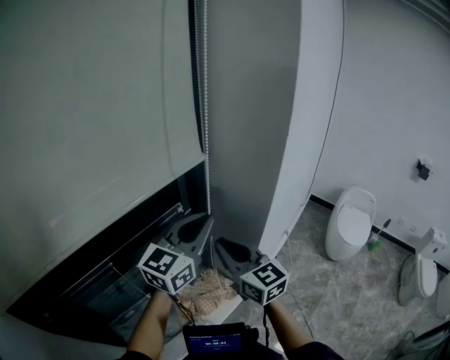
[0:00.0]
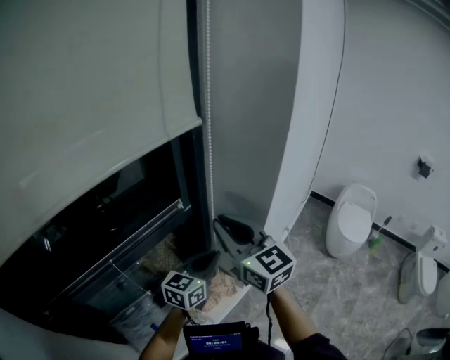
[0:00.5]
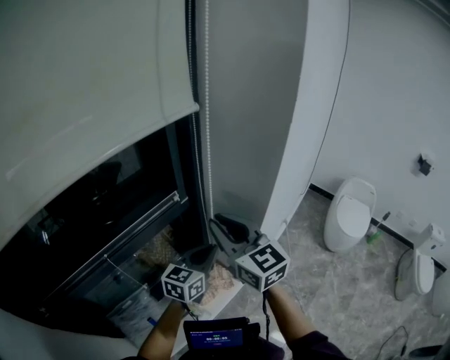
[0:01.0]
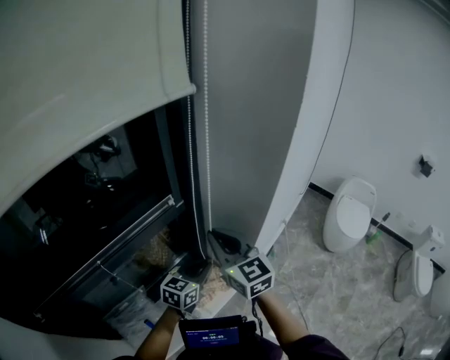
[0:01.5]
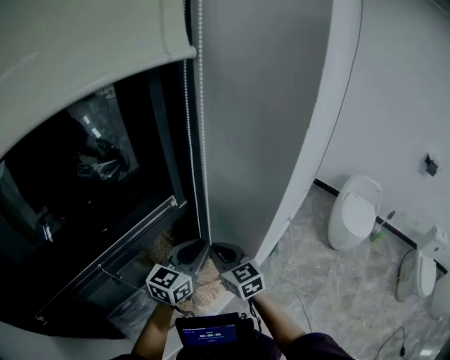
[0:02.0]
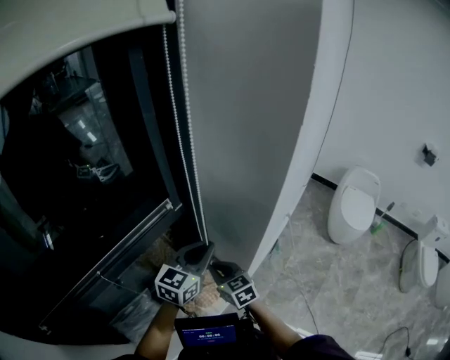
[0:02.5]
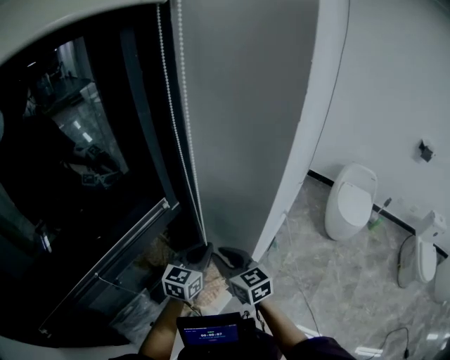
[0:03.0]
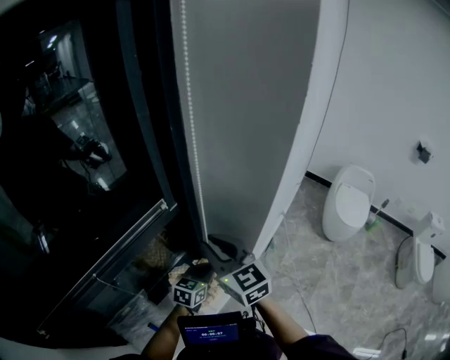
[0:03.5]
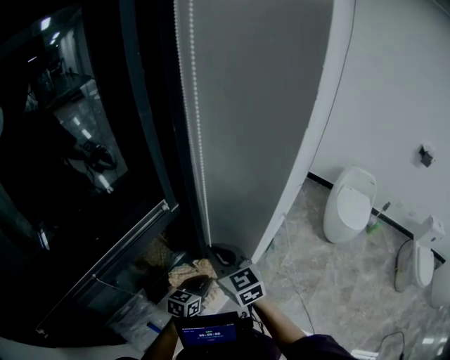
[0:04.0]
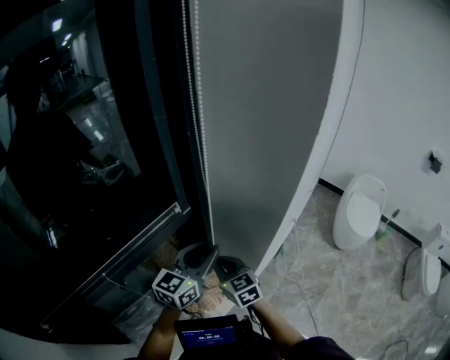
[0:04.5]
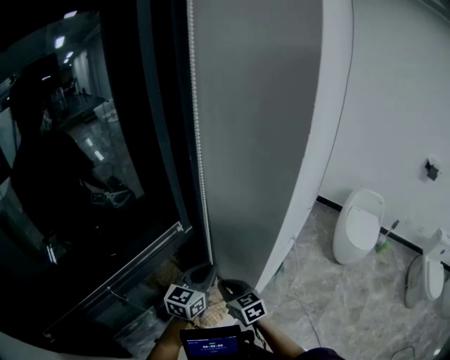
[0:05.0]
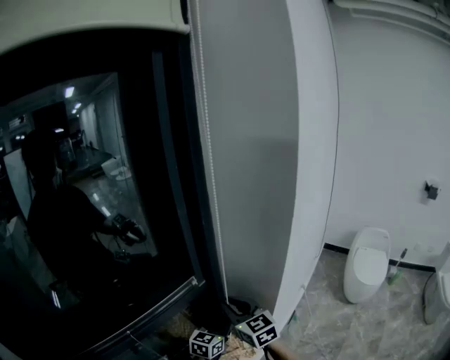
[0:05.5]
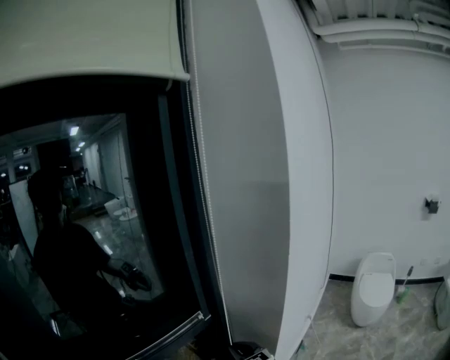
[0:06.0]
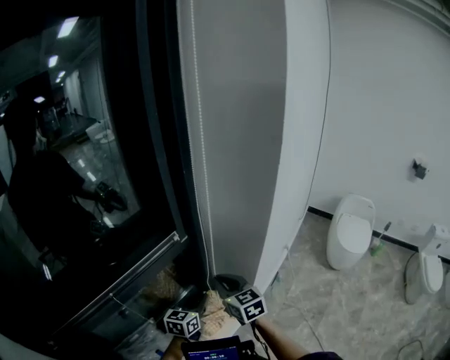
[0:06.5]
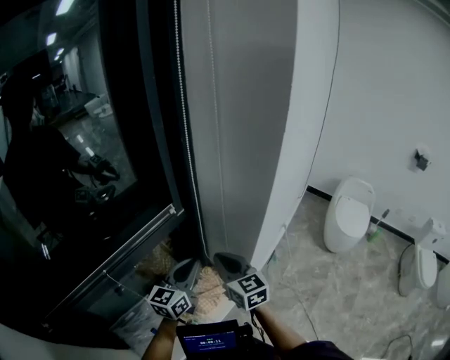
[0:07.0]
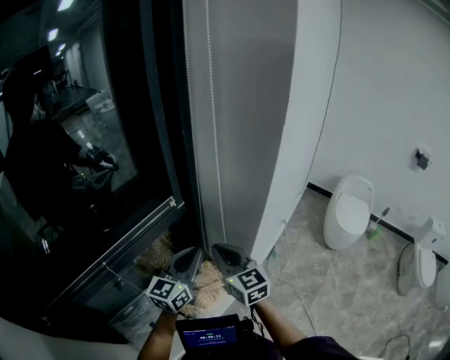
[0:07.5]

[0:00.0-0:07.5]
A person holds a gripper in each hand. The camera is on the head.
0:00.0 to 0:02.0: The left gripper goes some 20 cm downward; the right gripper moves downward and forward, some 15 cm.
0:02.0 to 0:04.0: The right gripper swings up and down, about 20 cm each way, with 2 reversals. Meanwhile the left gripper heads downward, covering approximately 20 cm, and rotates some 20 degrees.
0:04.0 to 0:05.5: The right gripper reaches approximately 10 cm downward, then returns, and opens, while the left gripper travels upward and forward by some 15 cm.
0:05.5 to 0:07.5: The right gripper moves backward, about 5 cm, travels downward and back again, roughly 10 cm each way, and closes, while the left gripper travels upward and backward by some 10 cm.

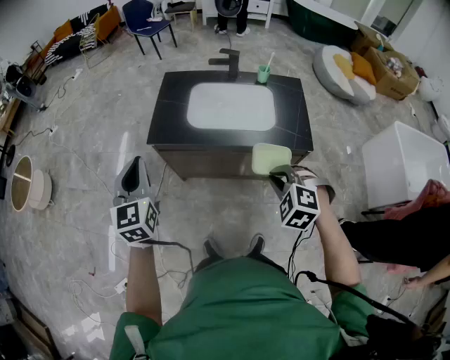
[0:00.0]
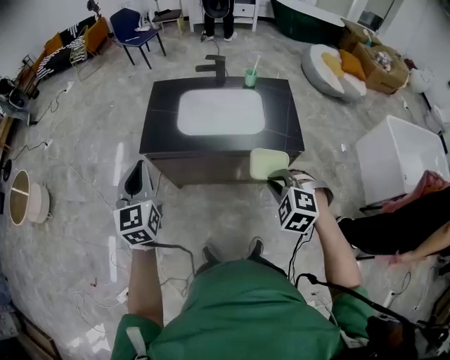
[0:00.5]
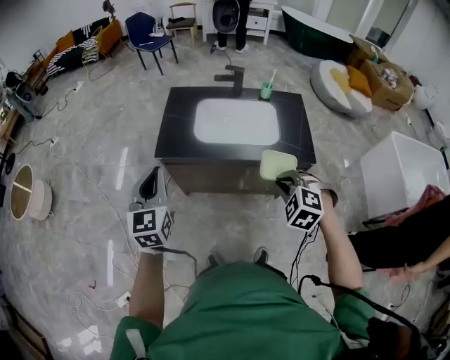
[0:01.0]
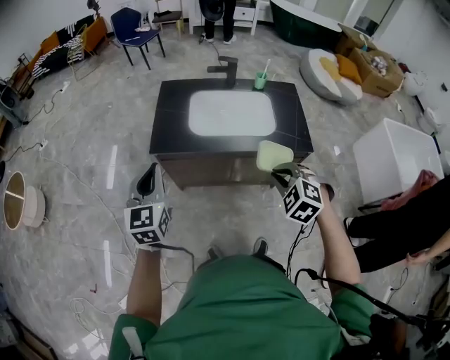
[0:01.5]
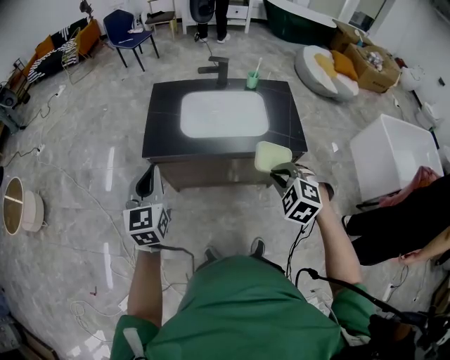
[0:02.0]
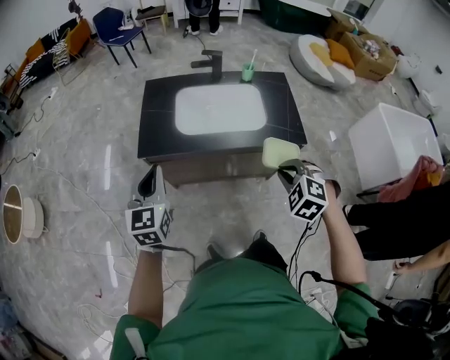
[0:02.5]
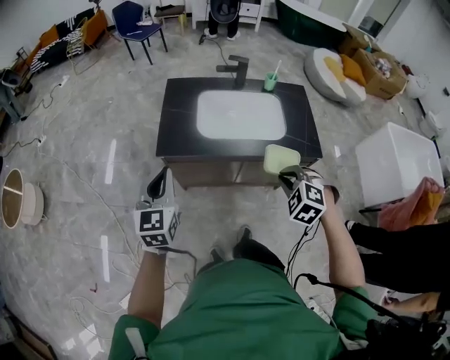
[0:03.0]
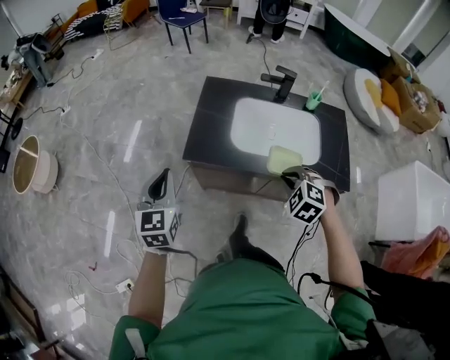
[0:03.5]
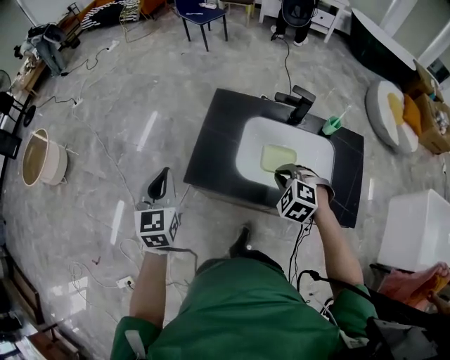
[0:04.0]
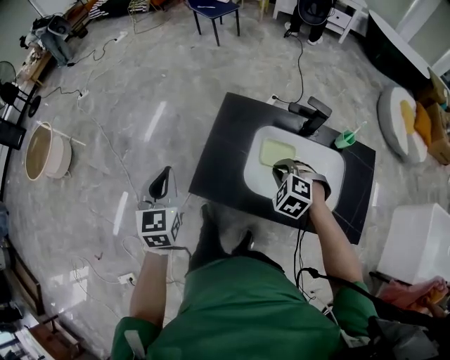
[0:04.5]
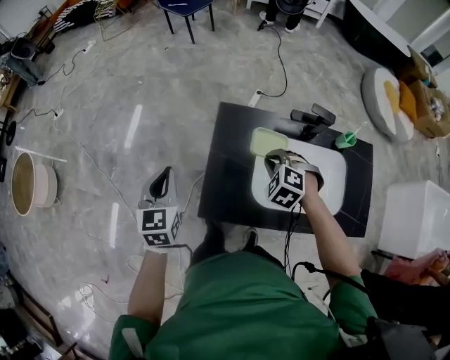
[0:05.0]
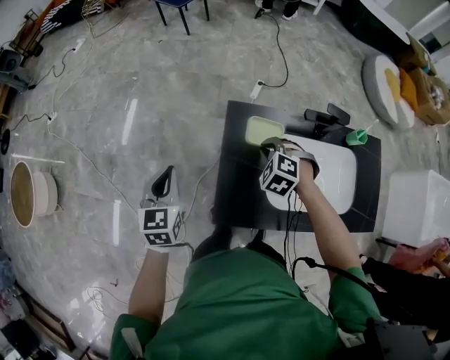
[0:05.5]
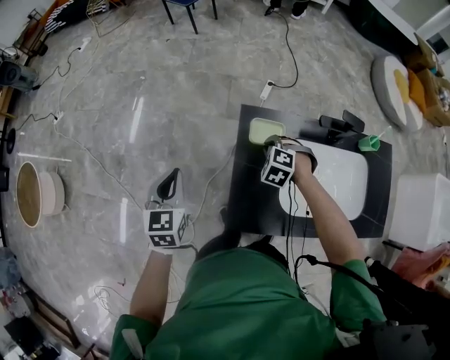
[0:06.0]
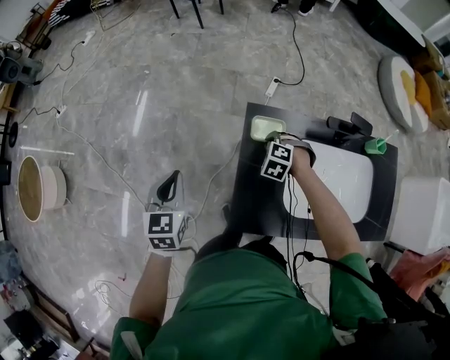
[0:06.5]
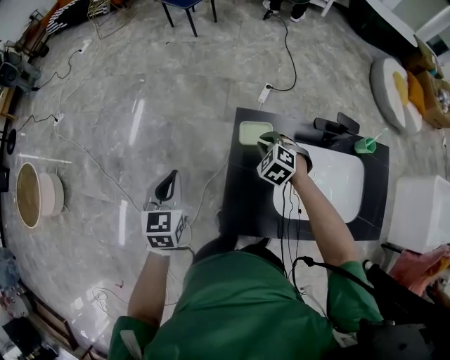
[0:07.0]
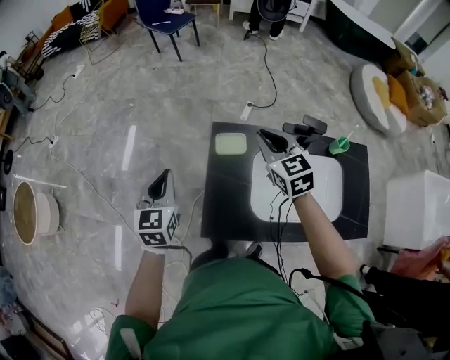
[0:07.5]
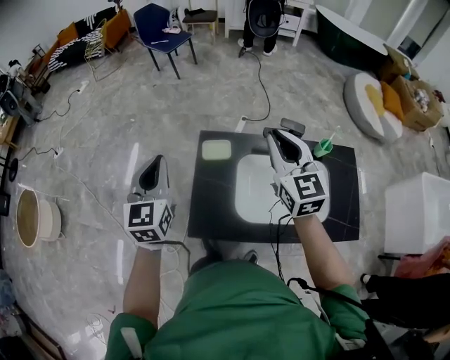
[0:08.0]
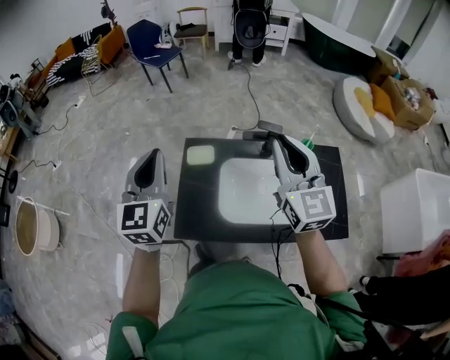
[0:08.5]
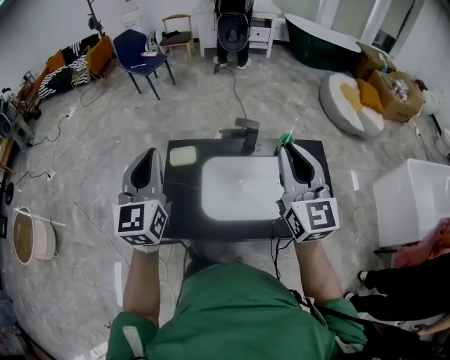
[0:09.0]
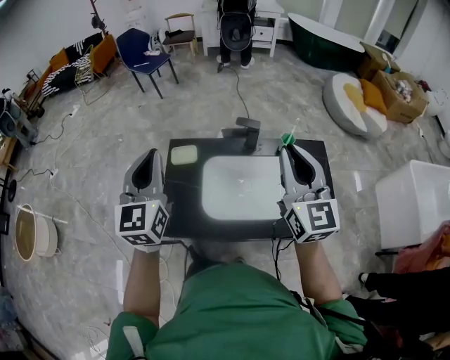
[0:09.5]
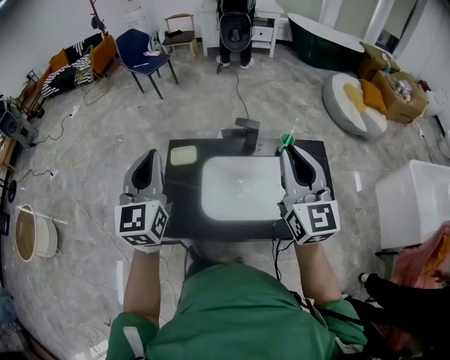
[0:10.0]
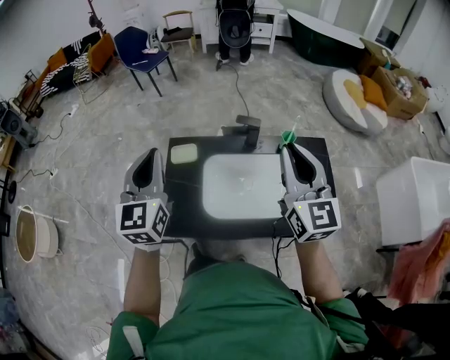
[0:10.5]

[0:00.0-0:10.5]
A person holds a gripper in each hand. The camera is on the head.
0:00.0 to 0:02.0: The grippers stay close to where they were, moving slightly.
0:02.0 to 0:04.0: The left gripper heads forward and to the left, covering some 25 cm; the right gripper travels forward by about 35 cm.
0:04.0 to 0:06.5: The left gripper is displaced forward and to the left by approximately 35 cm, while the right gripper heads forward, downward and to the left, covering some 40 cm.
0:06.5 to 0:08.5: The left gripper moves upward and to the right, about 35 cm, and tilts its fingers approximately 30 degrees upward. Meanwhile the right gripper is displaced upward, to the right and backward by some 60 cm, and points its fingers roughly 70 degrees further upward.
0:08.5 to 0:10.5: The right gripper heads to the right and backward, covering some 10 cm, while the left gripper moves to the right, about 10 cm.

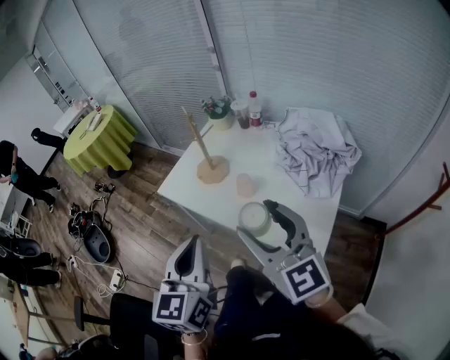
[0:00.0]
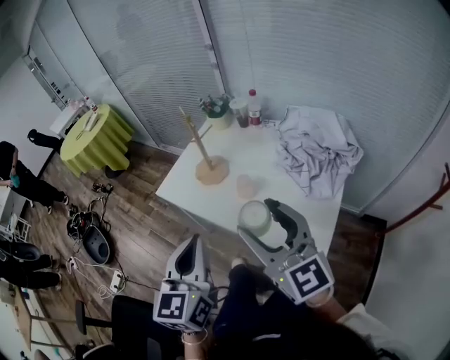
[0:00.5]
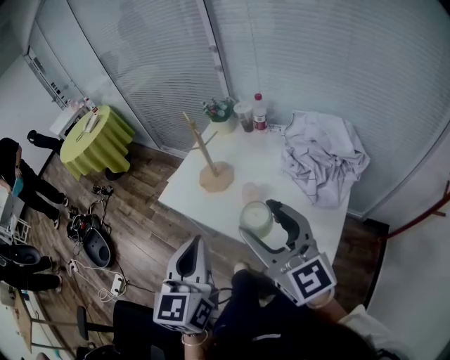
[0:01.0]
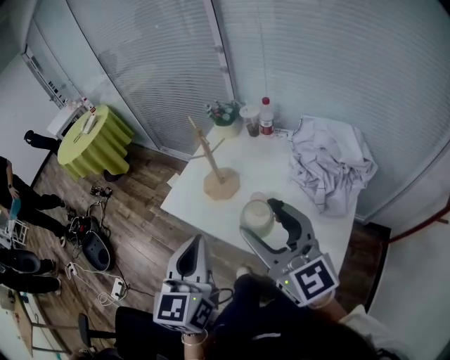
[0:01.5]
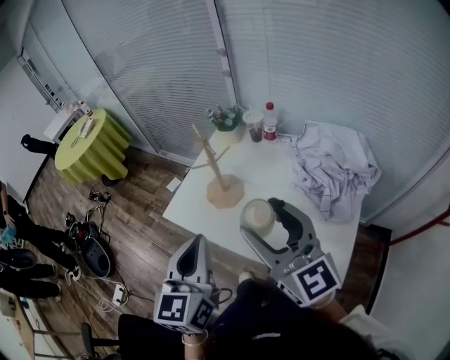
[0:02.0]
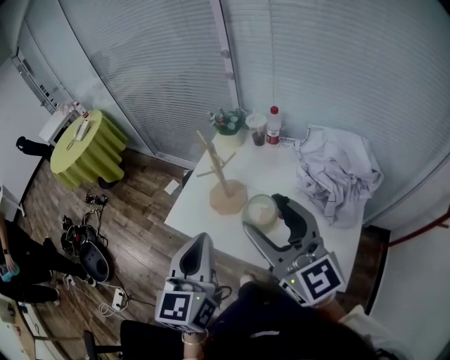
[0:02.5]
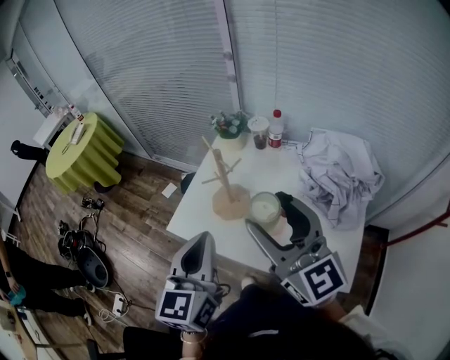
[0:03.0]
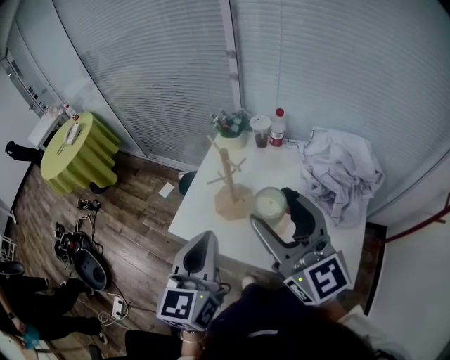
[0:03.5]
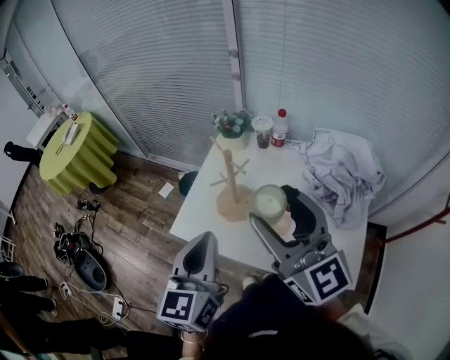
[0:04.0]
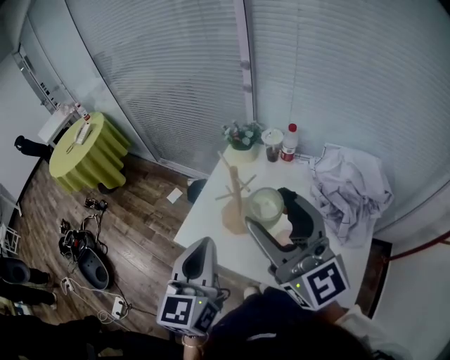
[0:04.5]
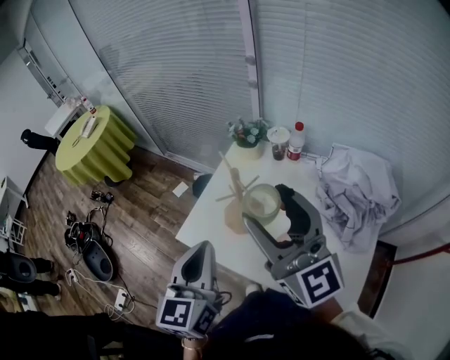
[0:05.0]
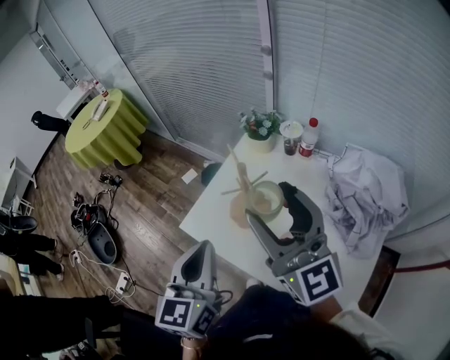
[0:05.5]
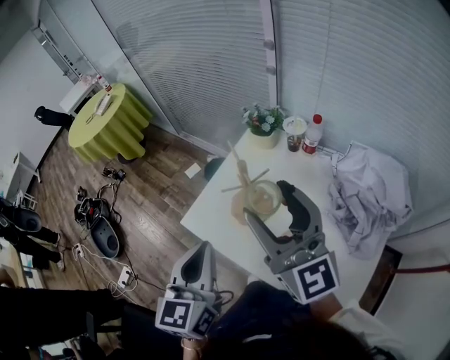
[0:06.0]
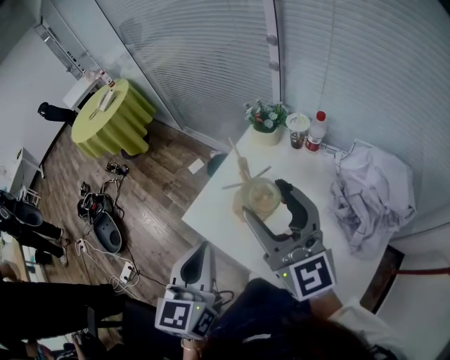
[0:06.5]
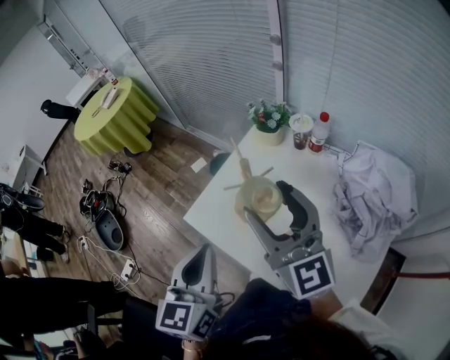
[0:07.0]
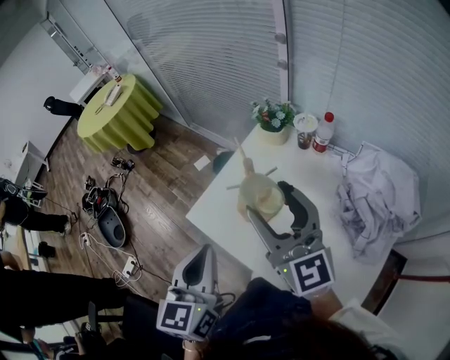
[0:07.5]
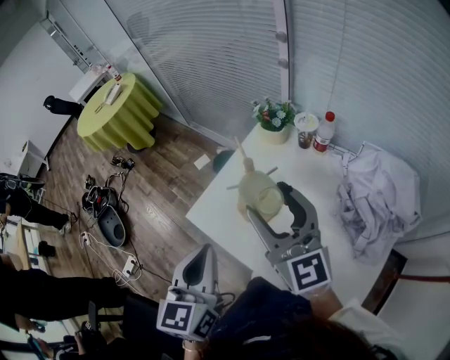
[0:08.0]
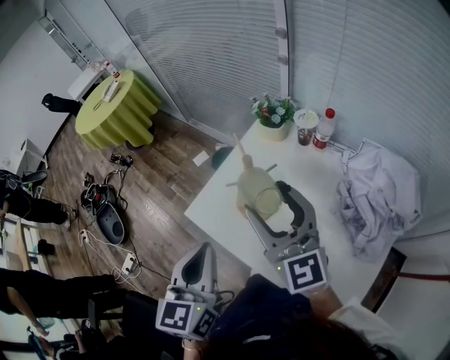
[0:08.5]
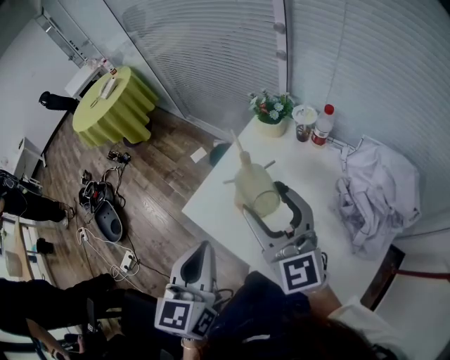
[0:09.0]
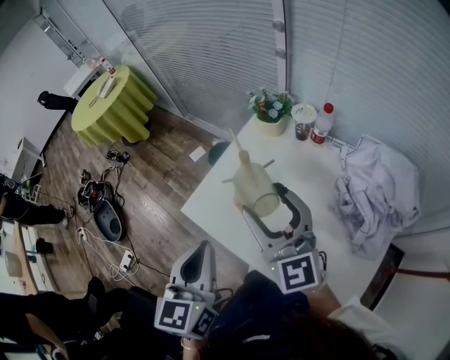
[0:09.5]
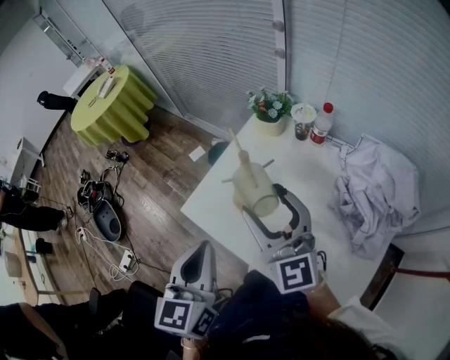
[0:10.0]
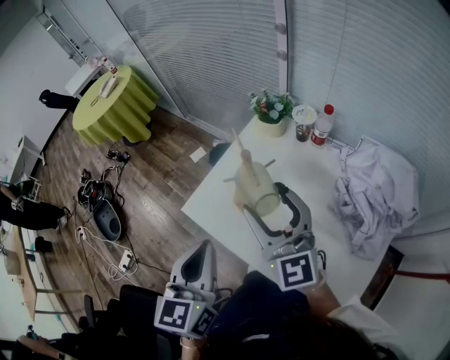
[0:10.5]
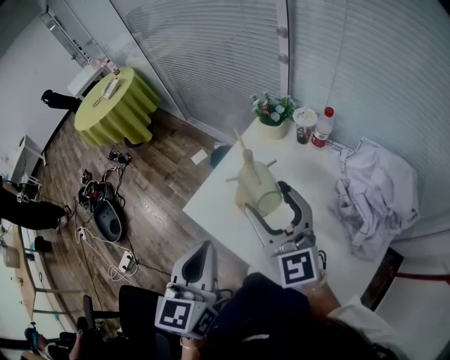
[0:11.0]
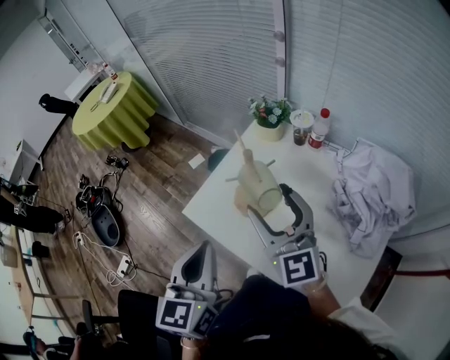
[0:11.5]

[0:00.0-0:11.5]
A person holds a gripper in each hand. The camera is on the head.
0:00.0 to 0:02.0: Both grippers move forward, about 15 cm.
0:02.0 to 0:04.0: Both grippers travel together forward, some 10 cm.
0:04.0 to 0:06.0: The right gripper shifts roughly 5 cm forward.
0:06.0 to 0:07.5: The grippers make only small movements.
0:07.5 to 0:11.5: The grippers stay close to where they were, moving slightly.
